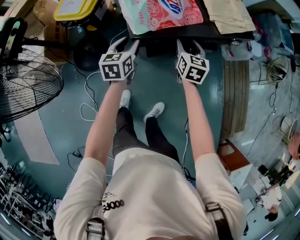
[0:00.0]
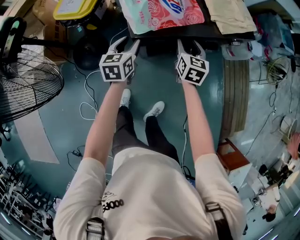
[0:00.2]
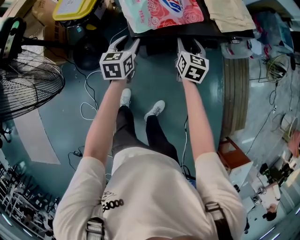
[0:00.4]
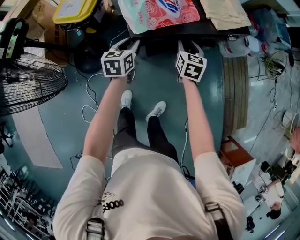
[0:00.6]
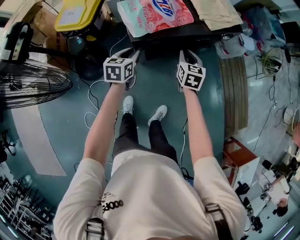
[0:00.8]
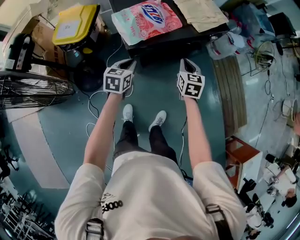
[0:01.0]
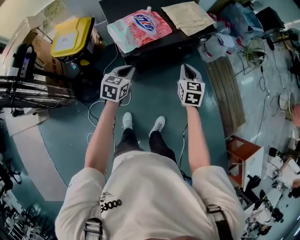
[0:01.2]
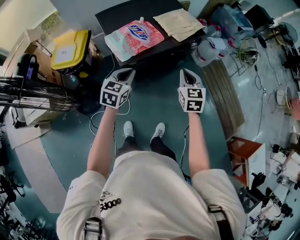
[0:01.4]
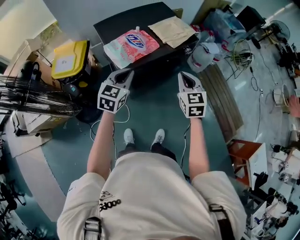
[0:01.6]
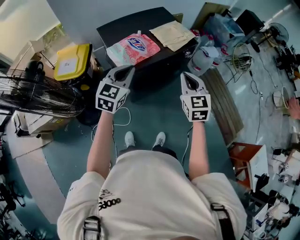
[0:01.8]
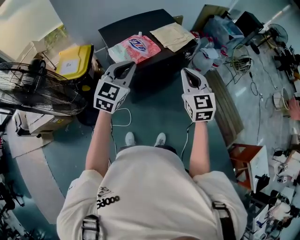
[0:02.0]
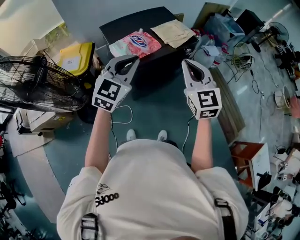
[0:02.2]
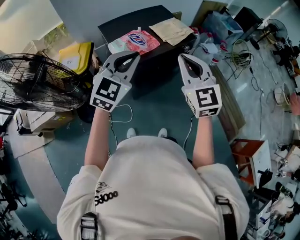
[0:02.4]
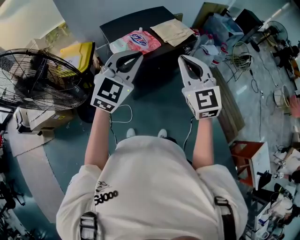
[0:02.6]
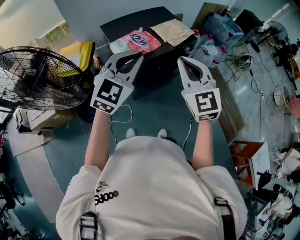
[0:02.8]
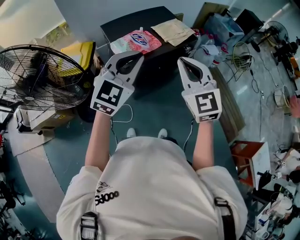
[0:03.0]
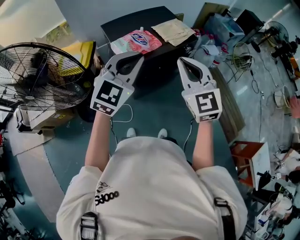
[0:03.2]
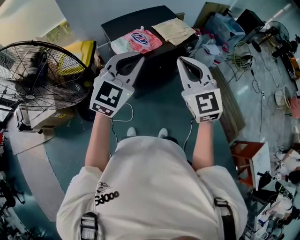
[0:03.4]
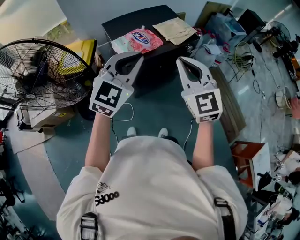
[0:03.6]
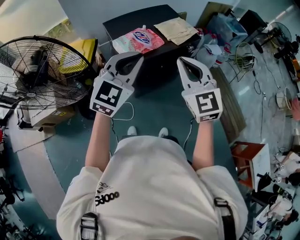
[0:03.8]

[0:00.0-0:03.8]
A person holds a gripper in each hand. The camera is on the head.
0.0 to 1.2 s: The right gripper goes approximately 20 cm backward, upward and to the right, and closes. The left gripper is displaced upward, backward and to the right by roughly 10 cm, changes its angle by about 30 degrees, and closes its fingers.
1.2 to 2.6 s: The left gripper shifts approximately 30 cm upward, and rotates some 50 degrees; the right gripper is displaced upward and backward by about 35 cm, and swivels approximately 30 degrees.
2.6 to 3.8 s: There are only small adjustments of the grippers.

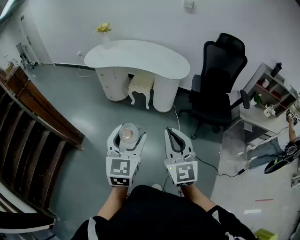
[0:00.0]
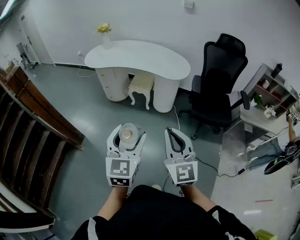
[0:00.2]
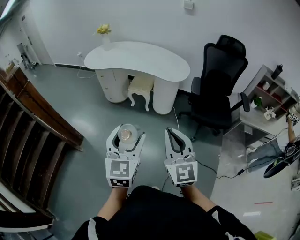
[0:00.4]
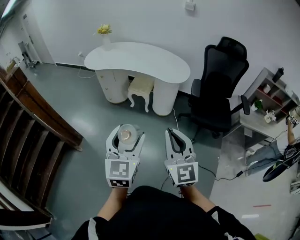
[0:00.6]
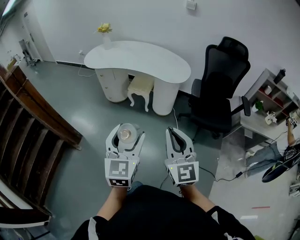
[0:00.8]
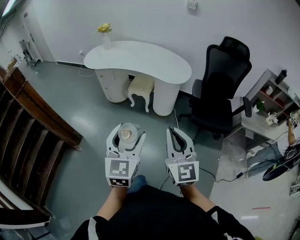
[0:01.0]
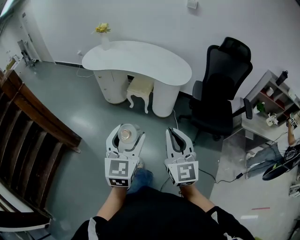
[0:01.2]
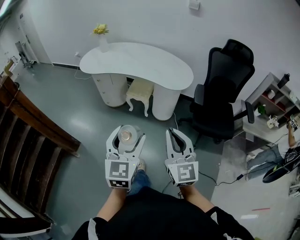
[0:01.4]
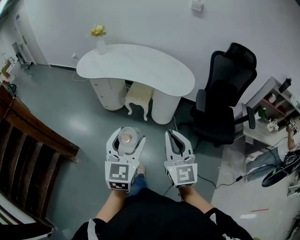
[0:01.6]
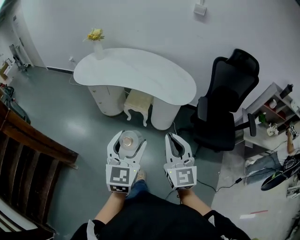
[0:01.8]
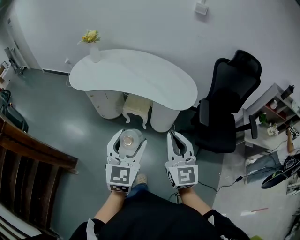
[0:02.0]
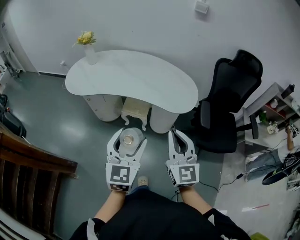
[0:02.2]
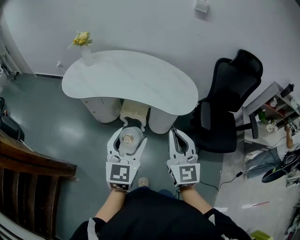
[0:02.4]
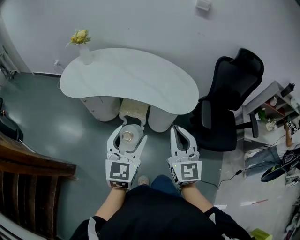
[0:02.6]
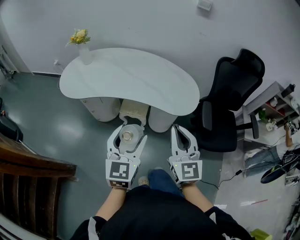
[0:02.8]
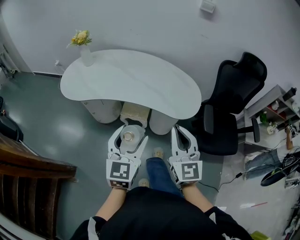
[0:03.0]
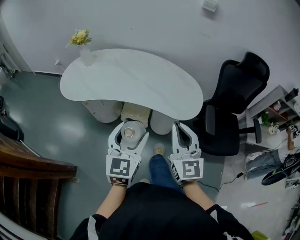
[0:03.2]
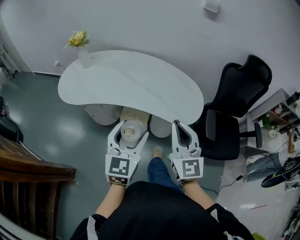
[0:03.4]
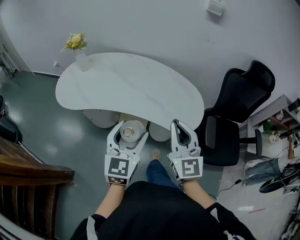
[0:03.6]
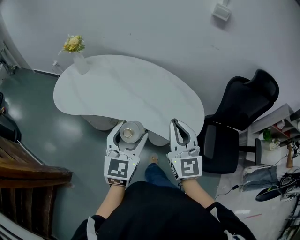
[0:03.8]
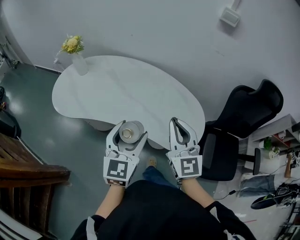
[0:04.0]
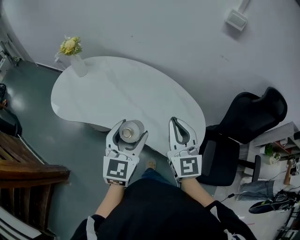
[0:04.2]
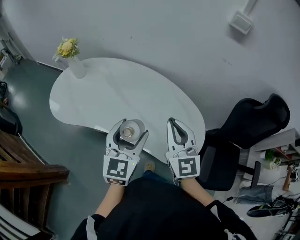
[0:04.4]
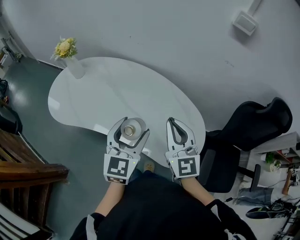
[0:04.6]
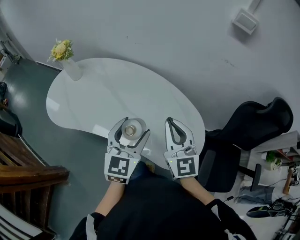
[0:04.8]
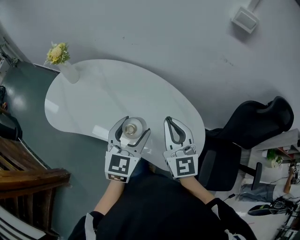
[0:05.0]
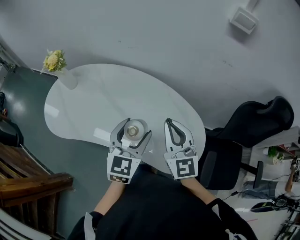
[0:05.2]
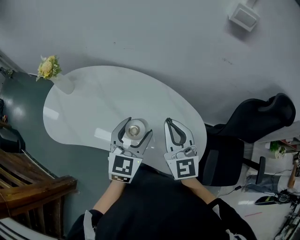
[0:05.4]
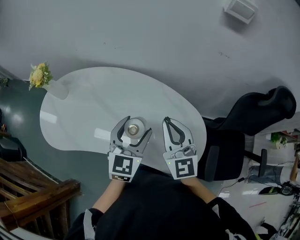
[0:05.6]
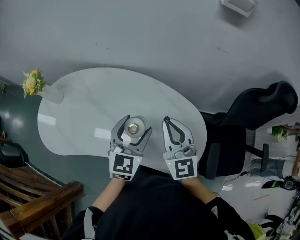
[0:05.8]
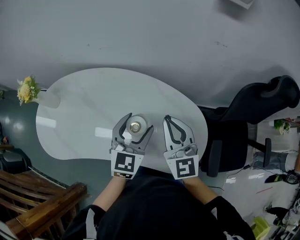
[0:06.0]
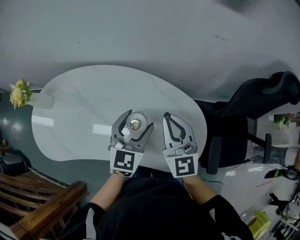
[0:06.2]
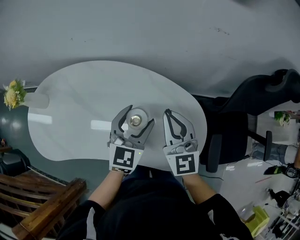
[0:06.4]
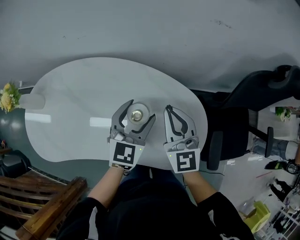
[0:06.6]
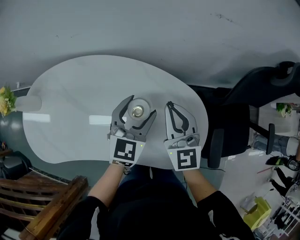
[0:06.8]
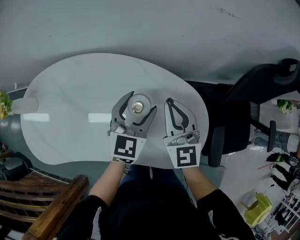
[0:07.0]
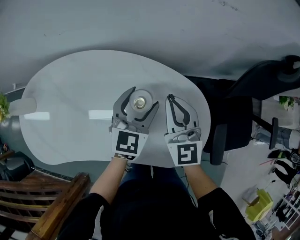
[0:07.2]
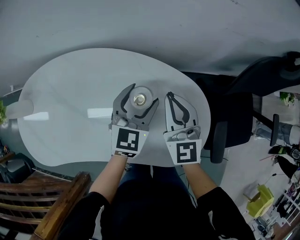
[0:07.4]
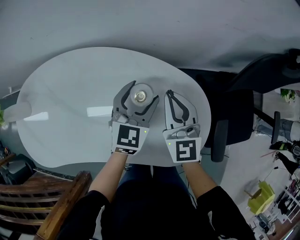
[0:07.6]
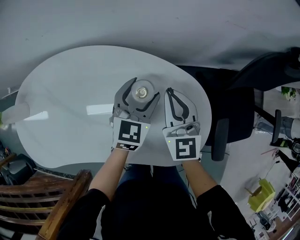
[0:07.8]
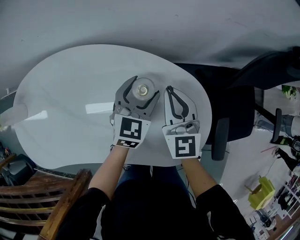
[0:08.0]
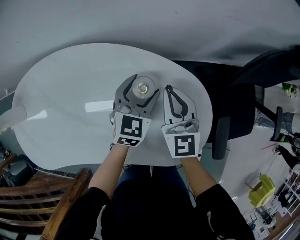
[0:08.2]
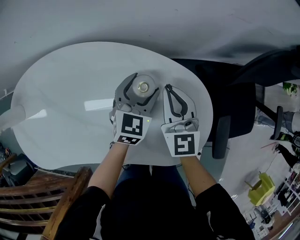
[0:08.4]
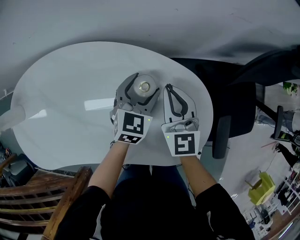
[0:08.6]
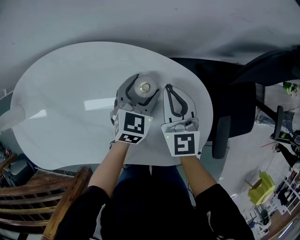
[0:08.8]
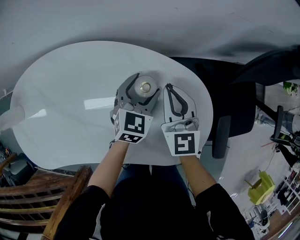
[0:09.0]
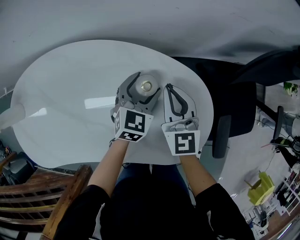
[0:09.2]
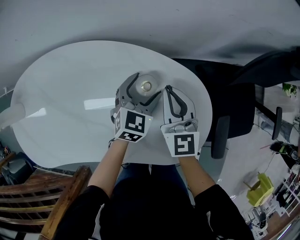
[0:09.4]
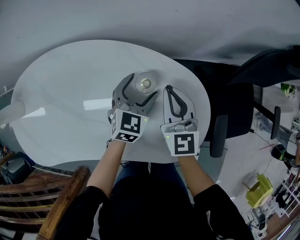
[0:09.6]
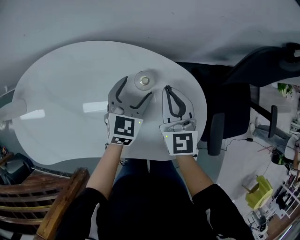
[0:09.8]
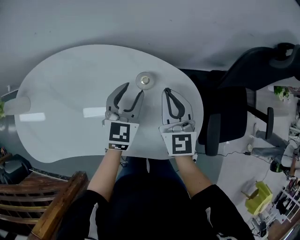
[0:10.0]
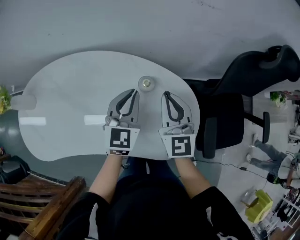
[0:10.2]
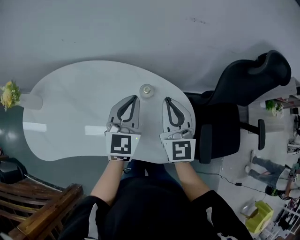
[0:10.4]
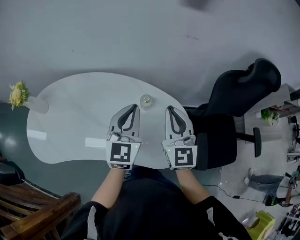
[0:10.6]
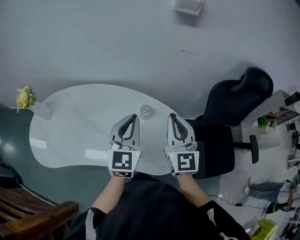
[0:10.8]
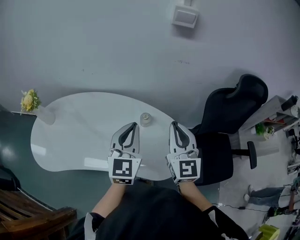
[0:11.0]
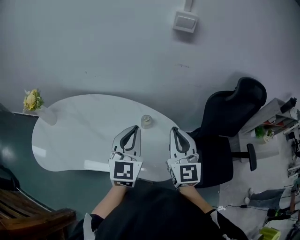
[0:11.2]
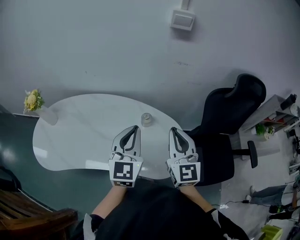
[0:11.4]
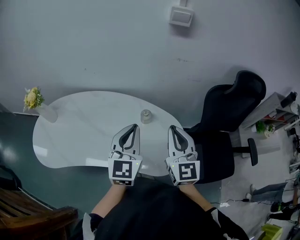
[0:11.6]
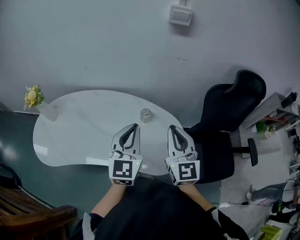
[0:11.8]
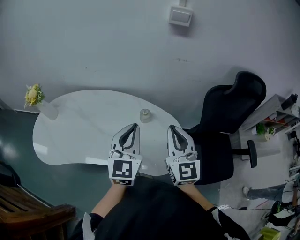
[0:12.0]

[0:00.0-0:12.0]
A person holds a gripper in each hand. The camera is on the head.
0.0 to 1.6 s: The two grippers go roughly 20 cm forward.
1.6 to 3.0 s: The two grippers go roughly 25 cm forward.
3.0 to 4.4 s: The two grippers go roughly 30 cm forward.
4.4 to 6.0 s: The left gripper travels forward, to the right and downward by some 20 cm, and rotates about 20 degrees; the right gripper travels forward and downward by some 15 cm.
6.0 to 7.6 s: The two grippers go some 15 cm downward, forward and to the right.
7.6 to 9.0 s: The two grippers go some 10 cm downward.
9.0 to 10.4 s: The left gripper is displaced upward by roughly 20 cm, turns by approximately 30 degrees, and closes its fingers. Meanwhile the right gripper is displaced upward and backward by some 20 cm.
10.4 to 12.0 s: Both grippers move backward and upward, roughly 15 cm.

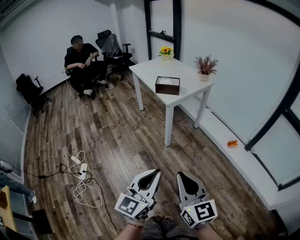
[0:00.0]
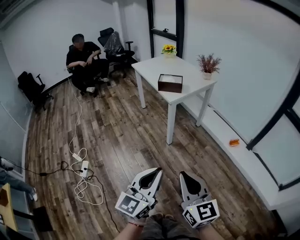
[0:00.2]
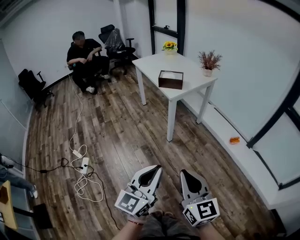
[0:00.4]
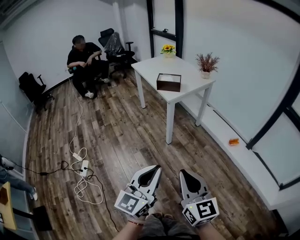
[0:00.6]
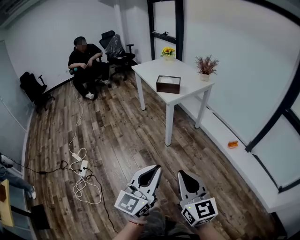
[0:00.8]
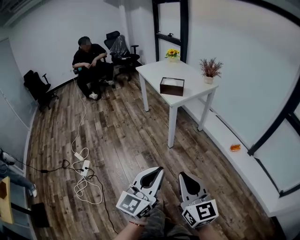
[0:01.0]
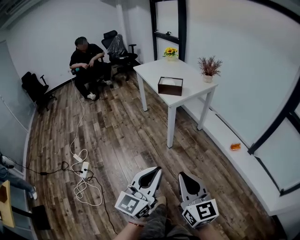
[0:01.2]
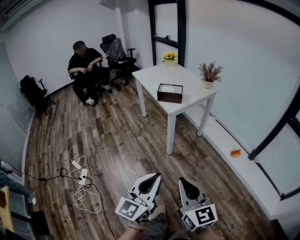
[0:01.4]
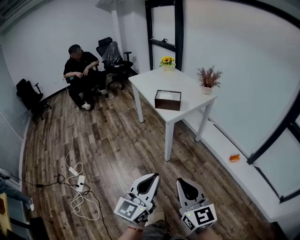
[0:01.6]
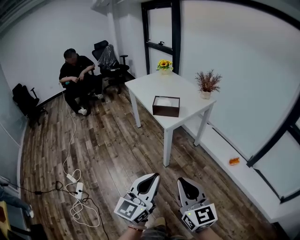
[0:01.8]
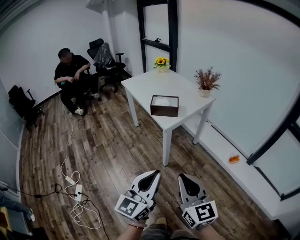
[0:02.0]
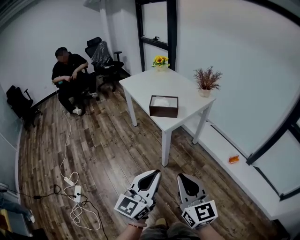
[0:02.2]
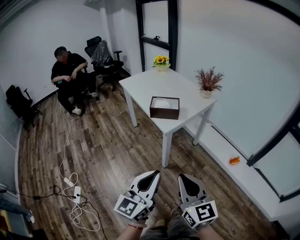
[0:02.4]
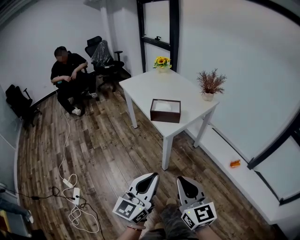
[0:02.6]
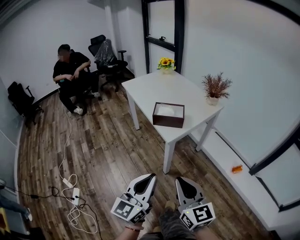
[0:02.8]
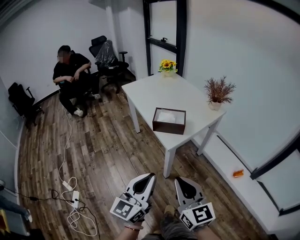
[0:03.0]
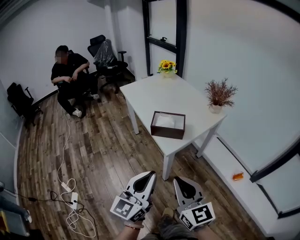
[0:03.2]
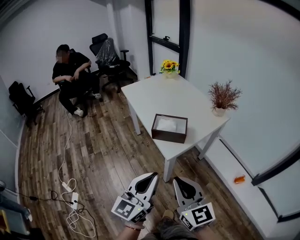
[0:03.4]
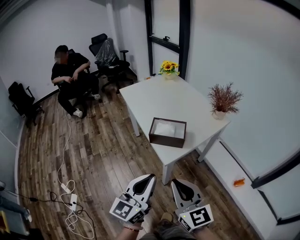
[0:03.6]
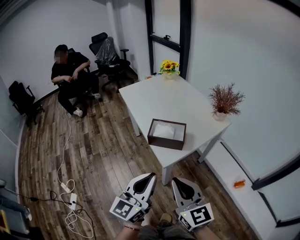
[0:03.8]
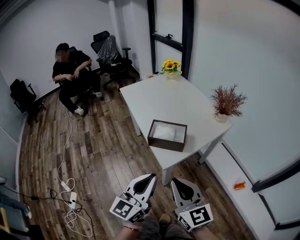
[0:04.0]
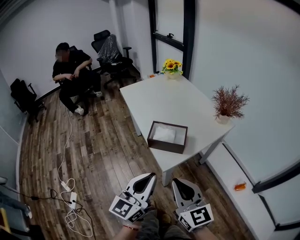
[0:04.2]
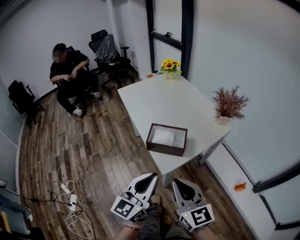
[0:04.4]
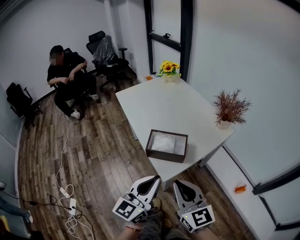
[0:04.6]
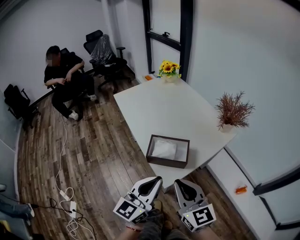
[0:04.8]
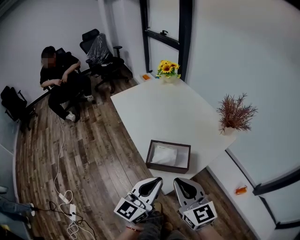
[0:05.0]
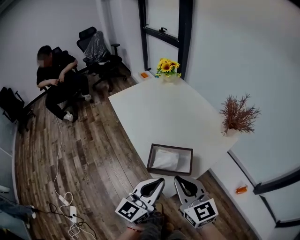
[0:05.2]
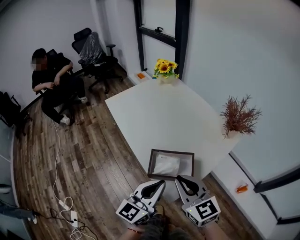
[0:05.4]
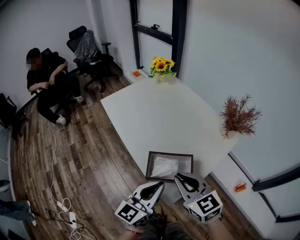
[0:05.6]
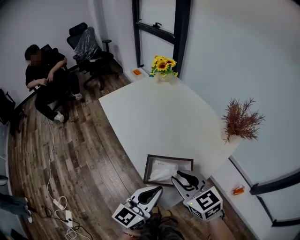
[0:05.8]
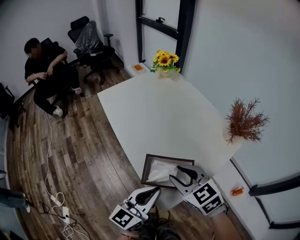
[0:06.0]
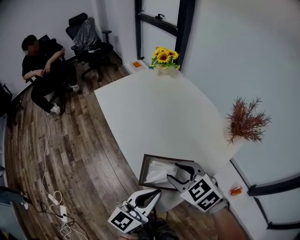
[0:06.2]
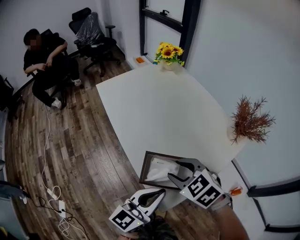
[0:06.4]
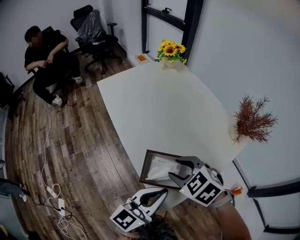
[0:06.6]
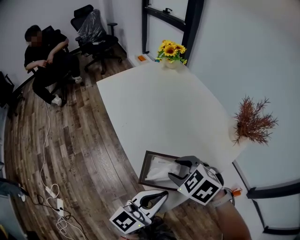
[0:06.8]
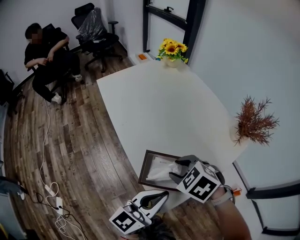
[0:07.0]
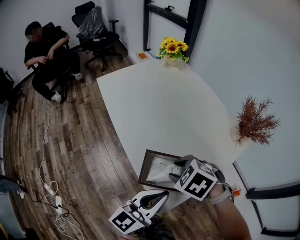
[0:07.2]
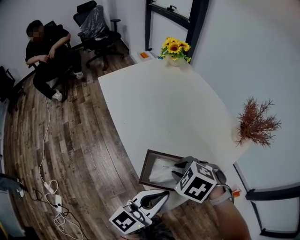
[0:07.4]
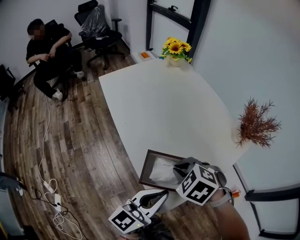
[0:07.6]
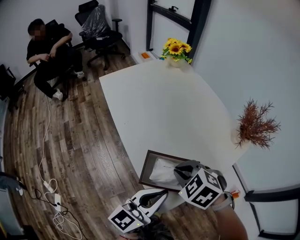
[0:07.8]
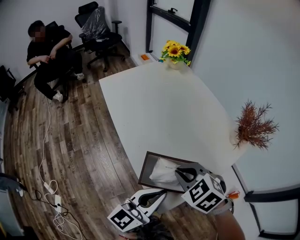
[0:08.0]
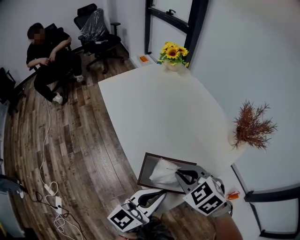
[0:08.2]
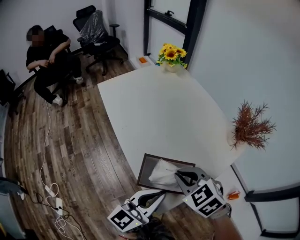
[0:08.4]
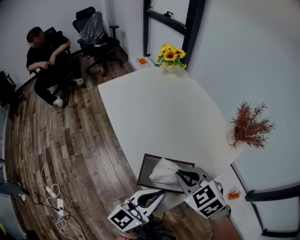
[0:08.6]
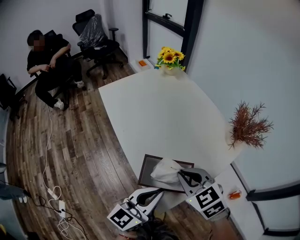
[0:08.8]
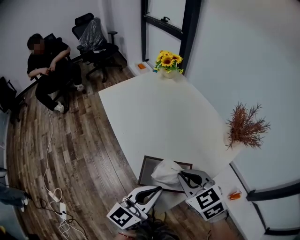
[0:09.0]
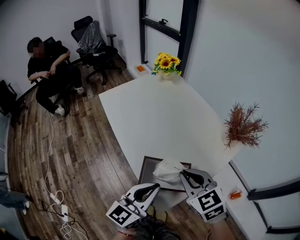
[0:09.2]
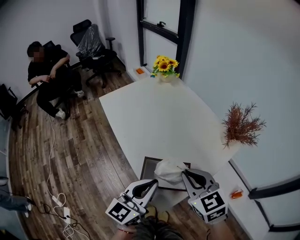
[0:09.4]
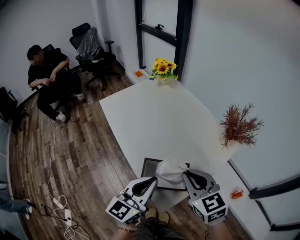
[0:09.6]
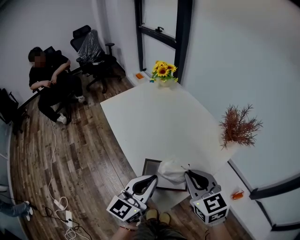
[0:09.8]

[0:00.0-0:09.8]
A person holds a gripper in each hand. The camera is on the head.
0.0 to 1.4 s: The two grippers go about 5 cm forward.
1.4 to 2.8 s: Both grippers move forward, about 25 cm.
2.8 to 4.2 s: The two grippers go approximately 20 cm forward.
4.2 to 5.6 s: Both grippers travel together forward, about 20 cm.
5.6 to 7.0 s: The left gripper ends up some 5 cm from where it was. Meanwhile the right gripper is displaced downward and forward by some 15 cm, points its fingers roughly 40 degrees further downward, and opens its fingers.
7.0 to 8.4 s: The right gripper closes.
8.4 to 9.8 s: The grippers both shift upward by about 10 cm. The right gripper changes its angle by approximately 30 degrees.
